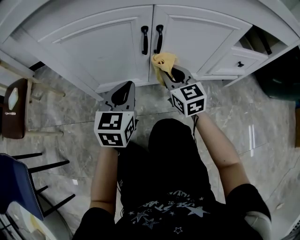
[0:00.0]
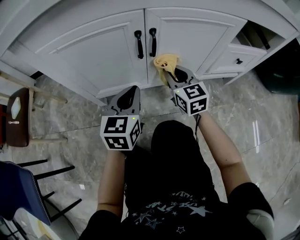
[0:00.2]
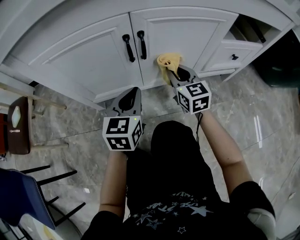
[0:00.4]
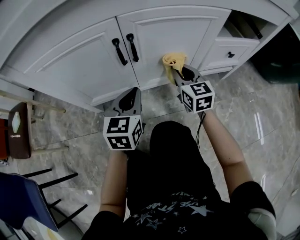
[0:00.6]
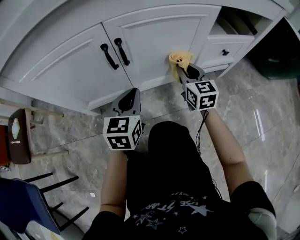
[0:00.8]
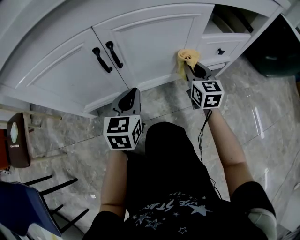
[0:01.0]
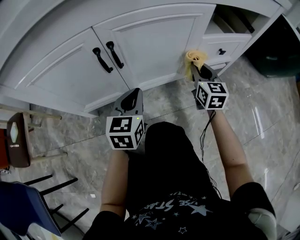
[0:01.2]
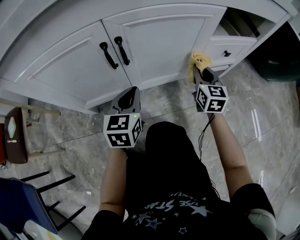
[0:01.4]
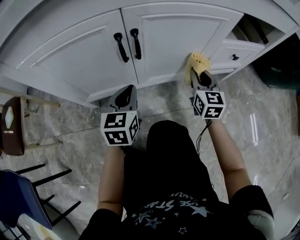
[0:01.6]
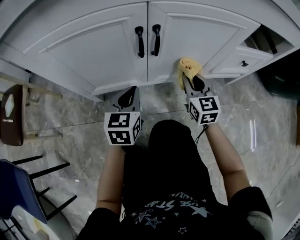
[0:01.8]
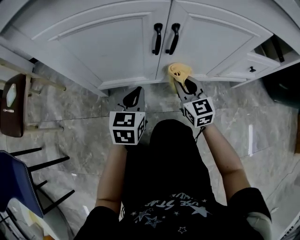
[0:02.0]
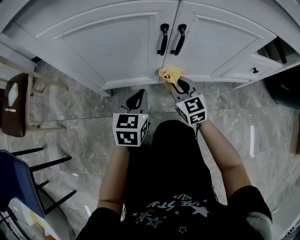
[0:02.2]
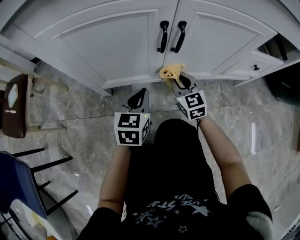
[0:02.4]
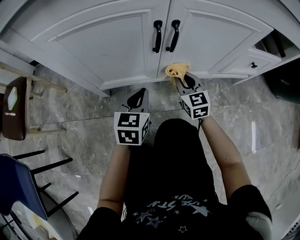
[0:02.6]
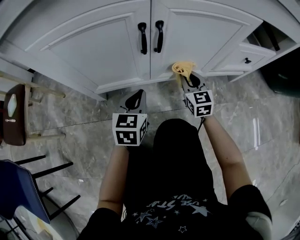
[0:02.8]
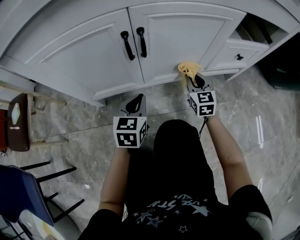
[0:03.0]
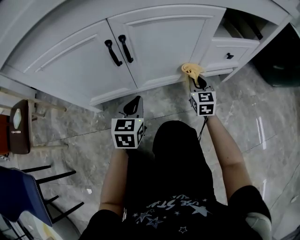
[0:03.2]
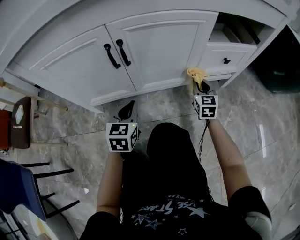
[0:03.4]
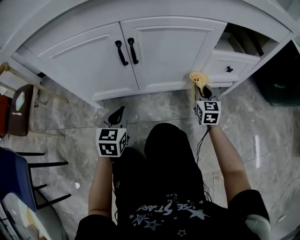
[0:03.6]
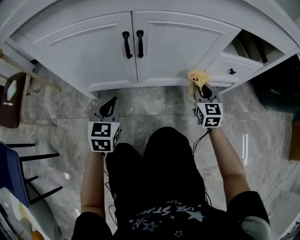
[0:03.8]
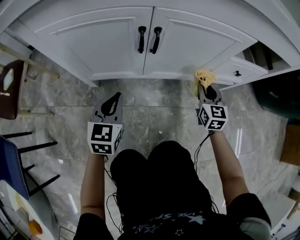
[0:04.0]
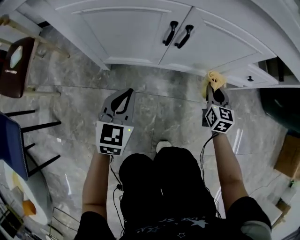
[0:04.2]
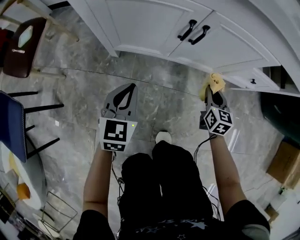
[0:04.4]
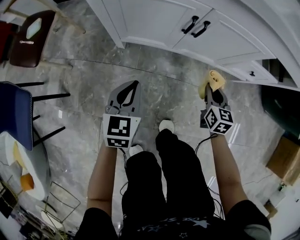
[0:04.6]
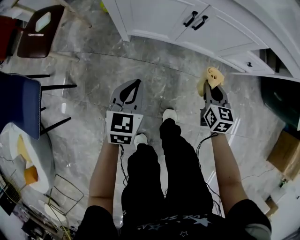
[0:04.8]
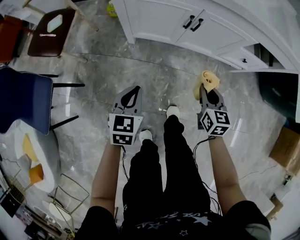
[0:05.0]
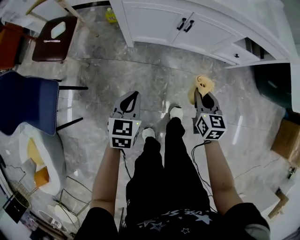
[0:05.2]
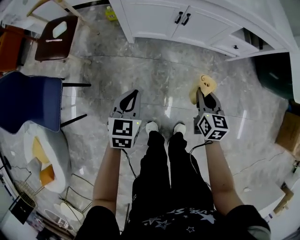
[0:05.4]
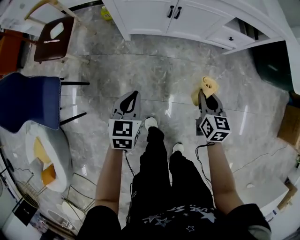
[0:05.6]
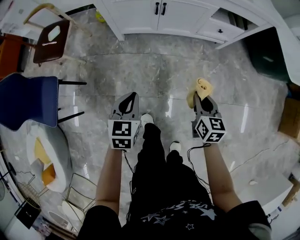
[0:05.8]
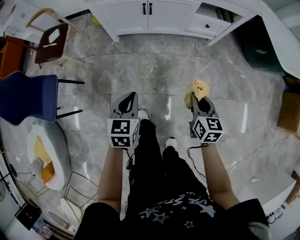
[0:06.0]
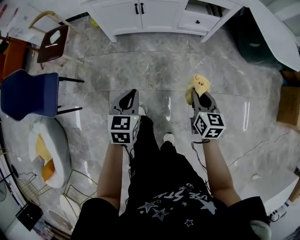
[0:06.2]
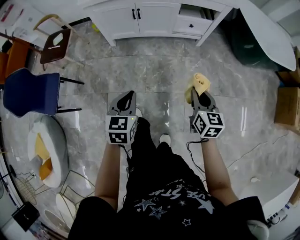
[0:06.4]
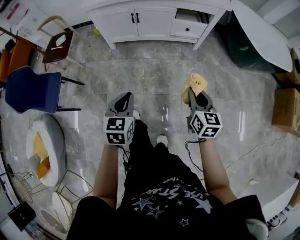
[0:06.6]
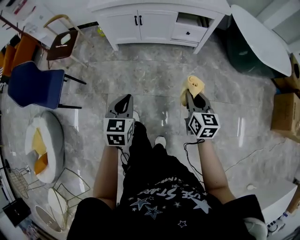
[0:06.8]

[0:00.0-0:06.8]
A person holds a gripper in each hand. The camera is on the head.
0:00.0 to 0:01.4: The left gripper moves to the right, approximately 10 cm. Meanwhile the right gripper heads to the right, covering roughly 25 cm, and changes its angle by roughly 30 degrees.
0:01.4 to 0:02.8: The left gripper moves to the left and downward, roughly 10 cm. The right gripper is displaced to the left and downward by some 15 cm.
0:02.8 to 0:04.0: The left gripper heads upward, covering roughly 5 cm. Meanwhile the right gripper moves to the right and upward, roughly 15 cm.
0:04.0 to 0:05.4: The right gripper travels backward, upward and to the left by roughly 40 cm, and changes its angle by approximately 20 degrees, while the left gripper heads backward and upward, covering roughly 35 cm.
0:05.4 to 0:06.8: The grippers both shift backward, to the right and upward by about 40 cm.

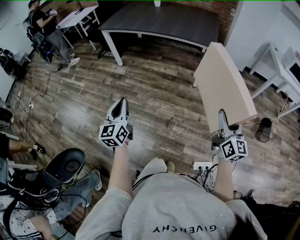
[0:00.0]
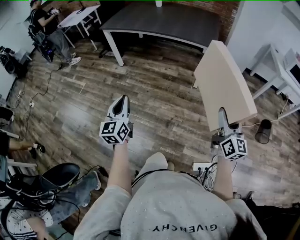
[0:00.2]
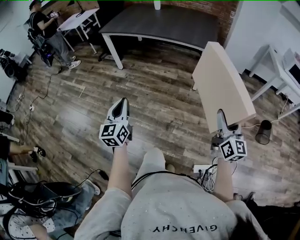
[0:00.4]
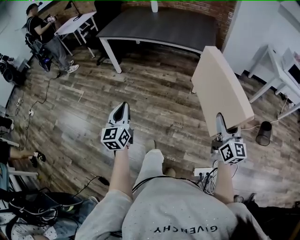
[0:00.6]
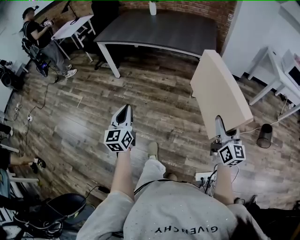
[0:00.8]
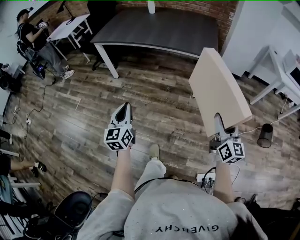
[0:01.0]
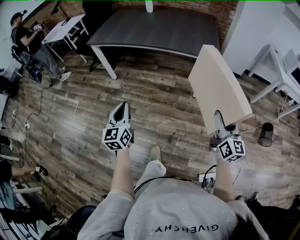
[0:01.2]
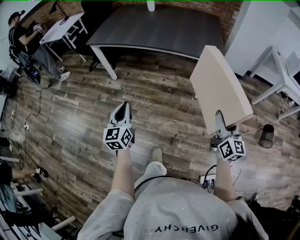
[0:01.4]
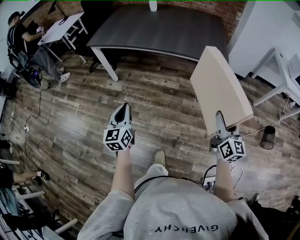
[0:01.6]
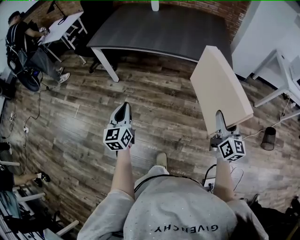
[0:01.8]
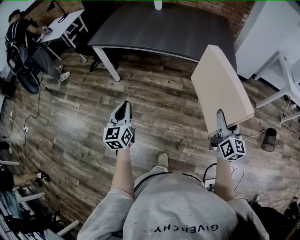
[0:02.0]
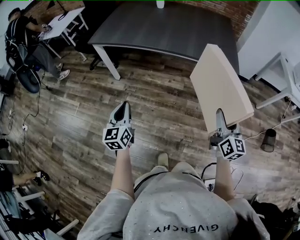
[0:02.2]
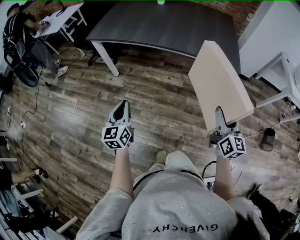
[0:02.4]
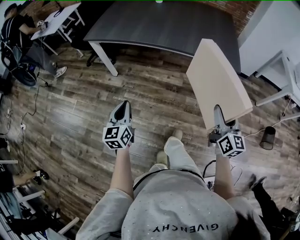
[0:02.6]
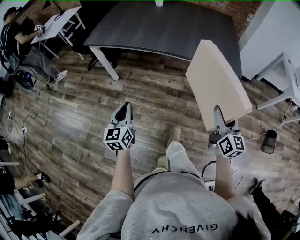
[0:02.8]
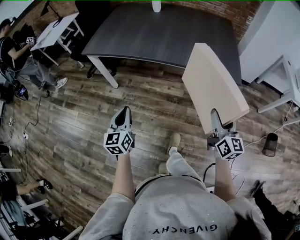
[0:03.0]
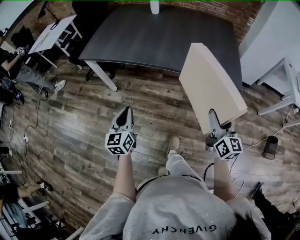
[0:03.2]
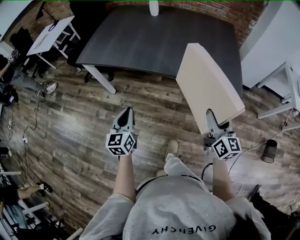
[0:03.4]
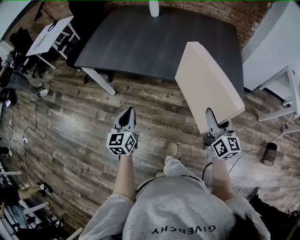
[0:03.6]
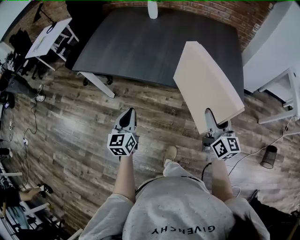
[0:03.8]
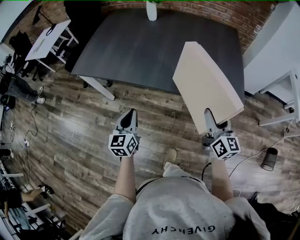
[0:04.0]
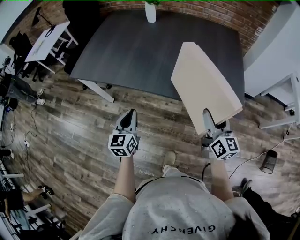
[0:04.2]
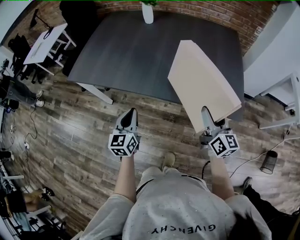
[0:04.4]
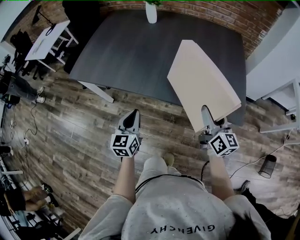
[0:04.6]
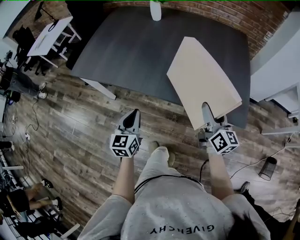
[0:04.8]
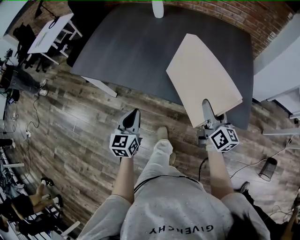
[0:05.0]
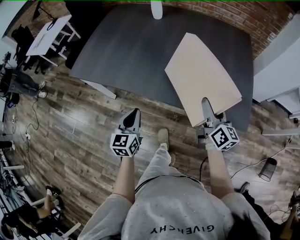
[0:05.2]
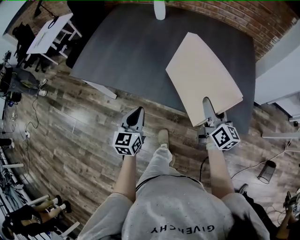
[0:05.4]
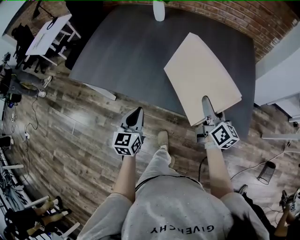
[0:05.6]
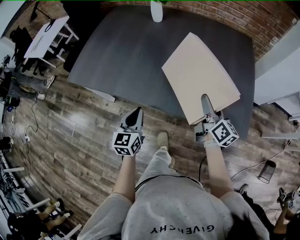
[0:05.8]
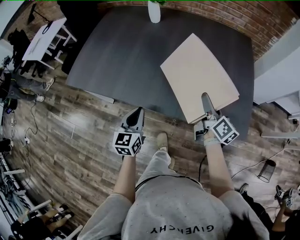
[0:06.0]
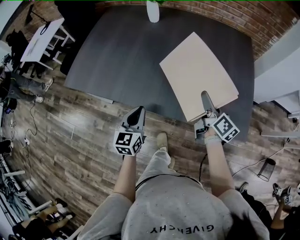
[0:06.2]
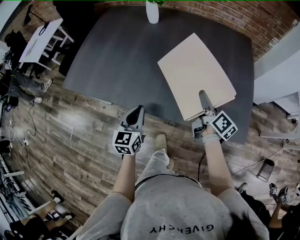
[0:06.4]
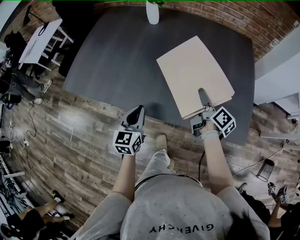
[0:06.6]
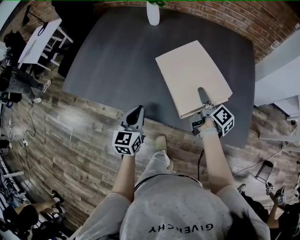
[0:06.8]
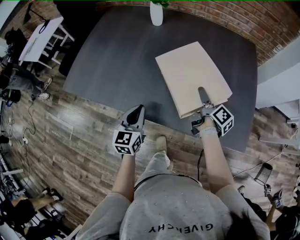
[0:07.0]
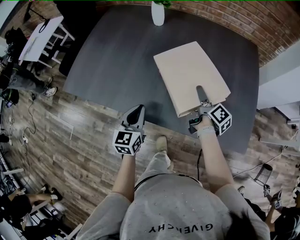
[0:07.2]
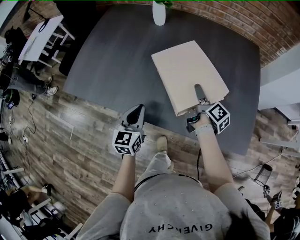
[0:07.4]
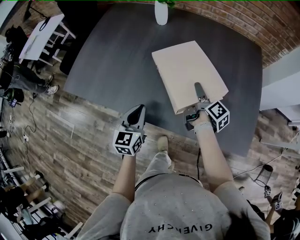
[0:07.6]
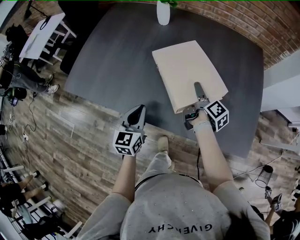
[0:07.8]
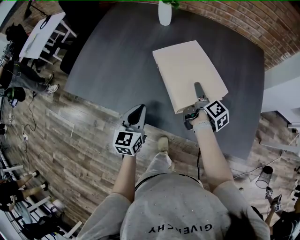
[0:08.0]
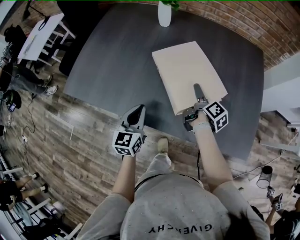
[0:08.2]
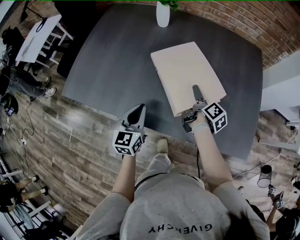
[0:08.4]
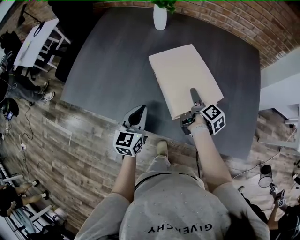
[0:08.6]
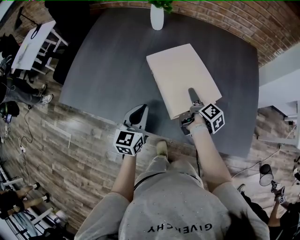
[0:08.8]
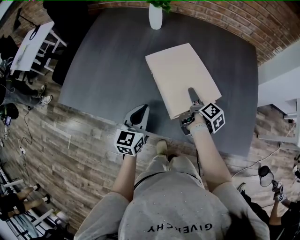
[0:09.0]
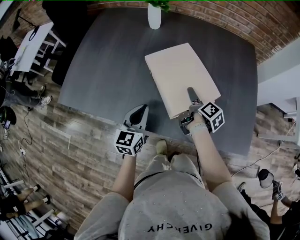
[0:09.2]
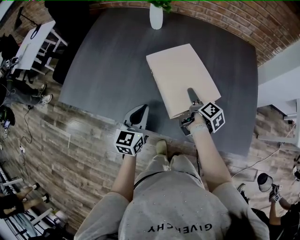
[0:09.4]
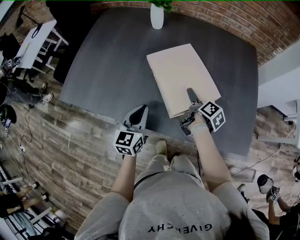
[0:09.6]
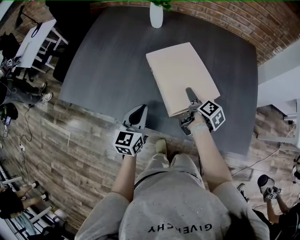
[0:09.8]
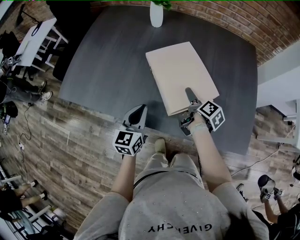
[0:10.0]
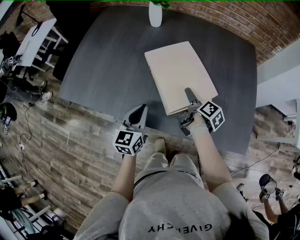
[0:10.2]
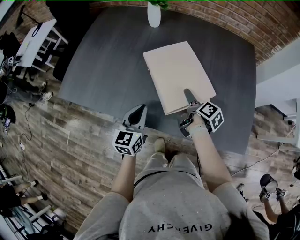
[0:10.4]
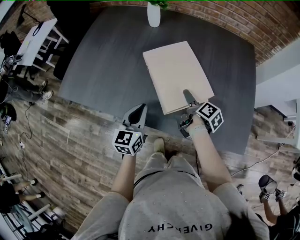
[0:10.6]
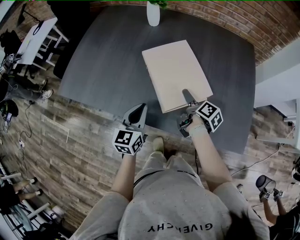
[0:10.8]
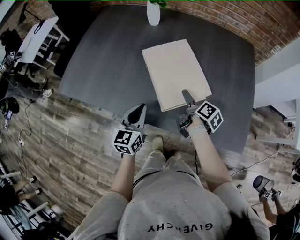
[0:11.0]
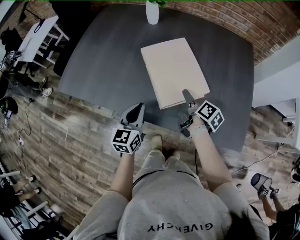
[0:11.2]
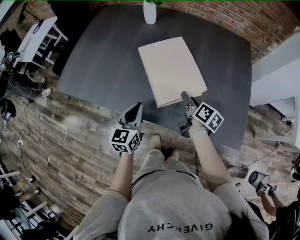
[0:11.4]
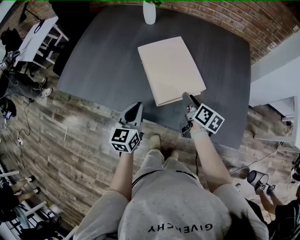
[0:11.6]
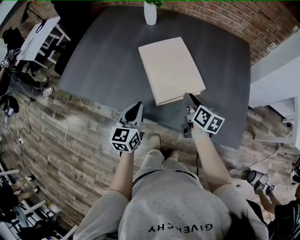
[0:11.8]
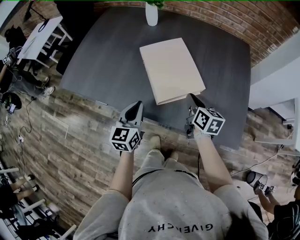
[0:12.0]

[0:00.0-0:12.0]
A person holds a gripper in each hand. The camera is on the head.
0:00.0 to 0:01.6: The right gripper moves forward and to the left, roughly 30 cm, while the left gripper heads forward, covering approximately 30 cm.
0:01.6 to 0:03.0: The left gripper goes approximately 15 cm forward. Meanwhile the right gripper moves forward and to the left, some 20 cm.
0:03.0 to 0:04.4: The right gripper moves forward, approximately 30 cm; the left gripper moves forward and to the right, roughly 30 cm.
0:04.4 to 0:06.0: The right gripper goes some 20 cm forward, and changes its angle by about 30 degrees. The left gripper heads forward, covering about 10 cm.
0:06.0 to 0:07.6: The left gripper moves forward, roughly 10 cm. The right gripper moves forward, downward and to the left, about 15 cm, and swivels some 30 degrees.
0:07.6 to 0:10.4: There are only small adjustments of the grippers.
0:10.4 to 0:12.0: The right gripper shifts about 10 cm upward and backward, twists roughly 50 degrees counterclockwise, seen from behind, and closes. The left gripper heads backward, covering some 5 cm.

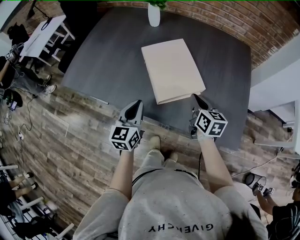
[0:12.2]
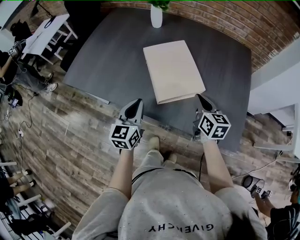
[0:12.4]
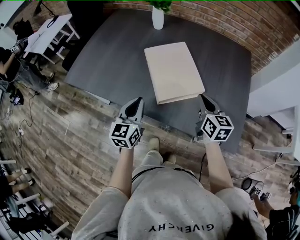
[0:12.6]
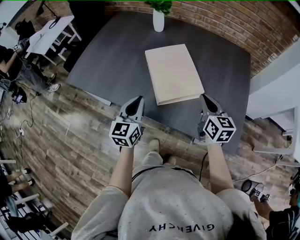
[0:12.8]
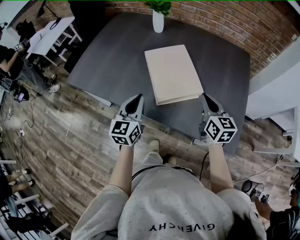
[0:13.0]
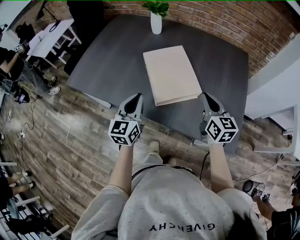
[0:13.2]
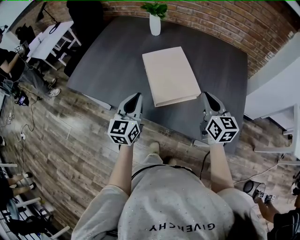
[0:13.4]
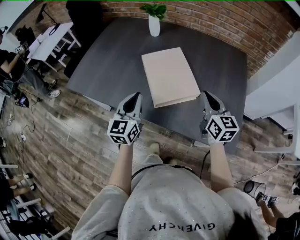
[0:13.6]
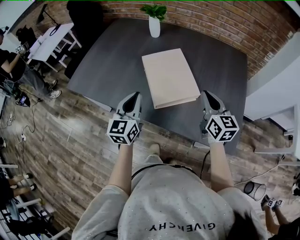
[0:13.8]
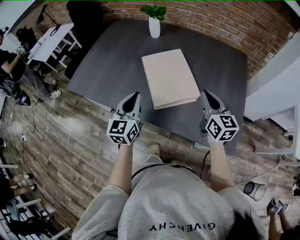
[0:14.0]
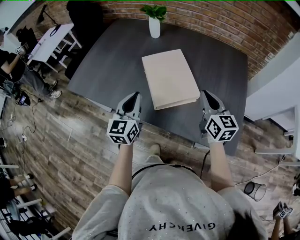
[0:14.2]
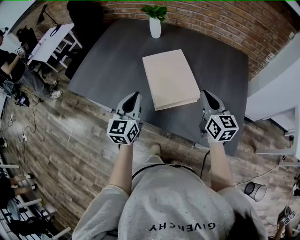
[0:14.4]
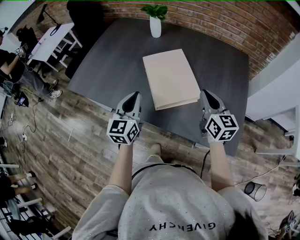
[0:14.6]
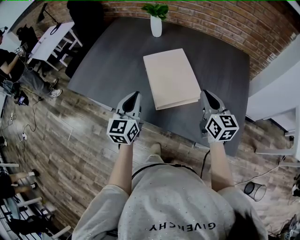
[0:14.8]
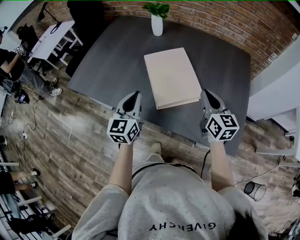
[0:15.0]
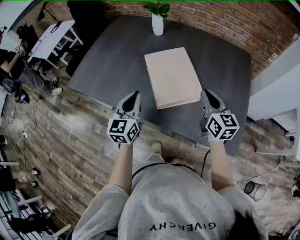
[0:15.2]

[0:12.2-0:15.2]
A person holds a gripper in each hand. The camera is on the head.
0:12.2 to 0:13.8: The left gripper travels upward by approximately 10 cm. The right gripper heads upward and to the right, covering about 10 cm.
0:13.8 to 0:15.2: The grippers stay close to where they were, moving slightly.

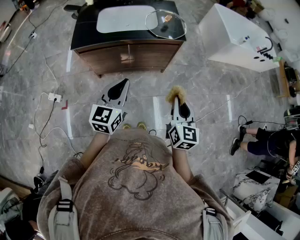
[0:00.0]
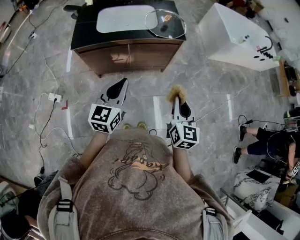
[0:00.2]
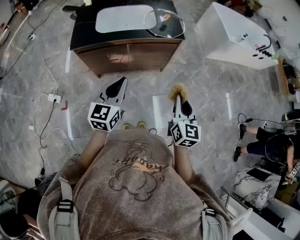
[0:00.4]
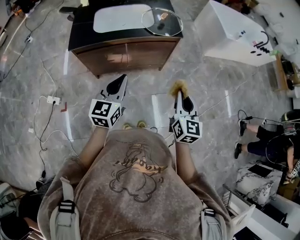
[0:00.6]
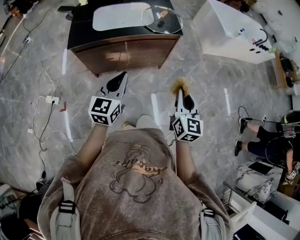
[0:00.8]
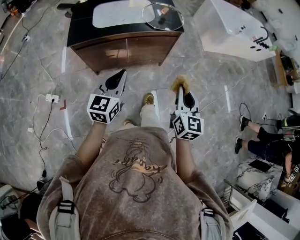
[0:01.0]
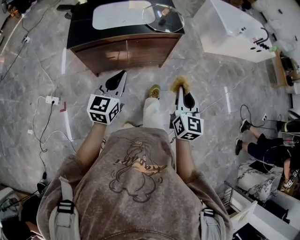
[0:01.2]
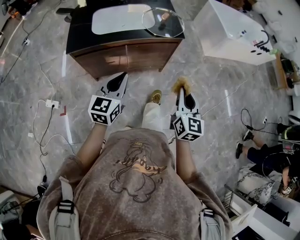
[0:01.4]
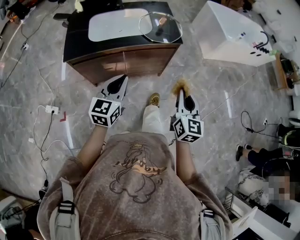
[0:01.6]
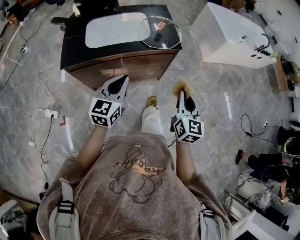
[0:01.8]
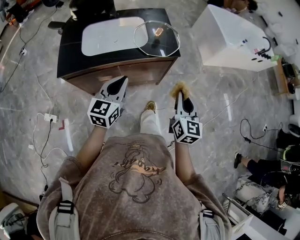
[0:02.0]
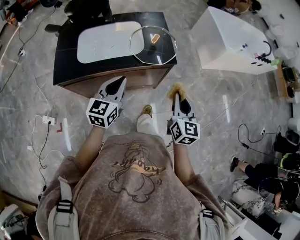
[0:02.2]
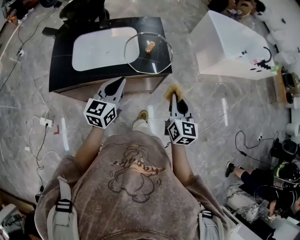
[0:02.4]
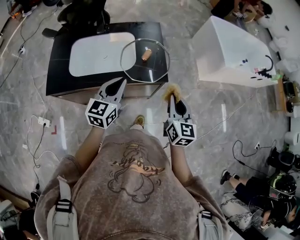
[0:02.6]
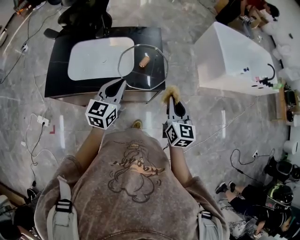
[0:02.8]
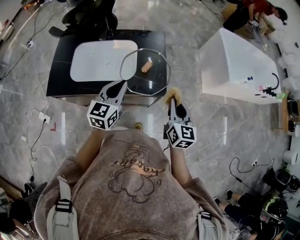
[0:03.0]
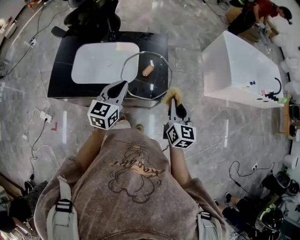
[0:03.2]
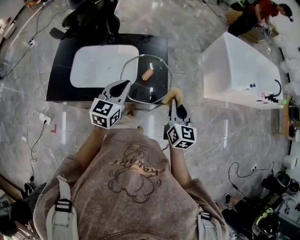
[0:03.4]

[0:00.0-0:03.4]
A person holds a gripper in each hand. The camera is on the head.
0:00.0 to 0:01.6: Both grippers move forward, approximately 10 cm.
0:01.6 to 0:03.4: The grippers both shift forward by roughly 40 cm.
